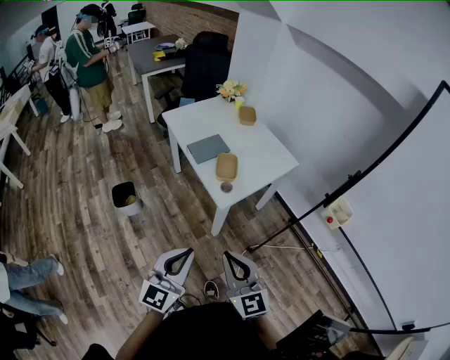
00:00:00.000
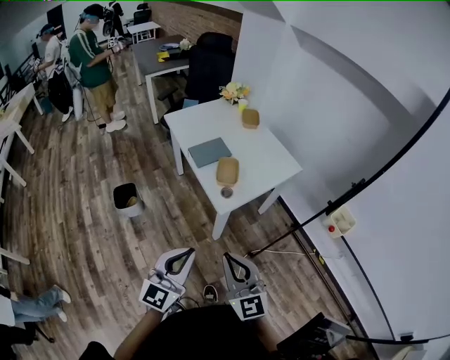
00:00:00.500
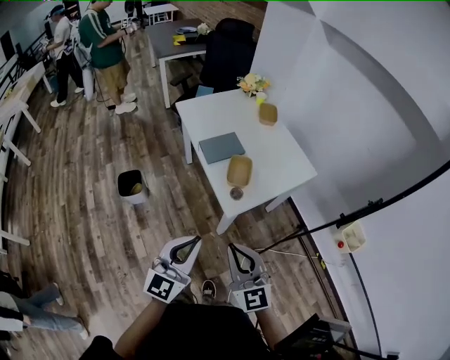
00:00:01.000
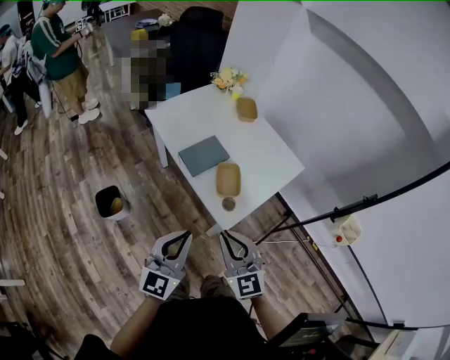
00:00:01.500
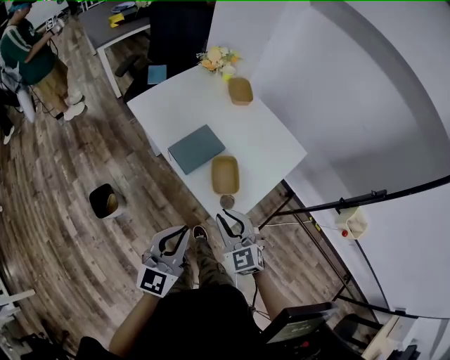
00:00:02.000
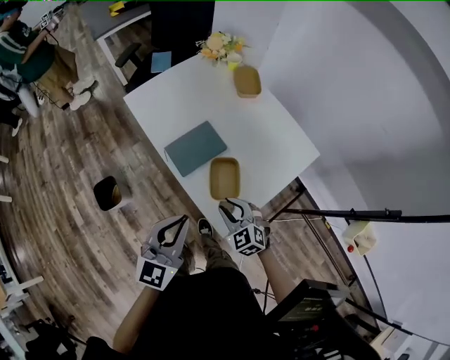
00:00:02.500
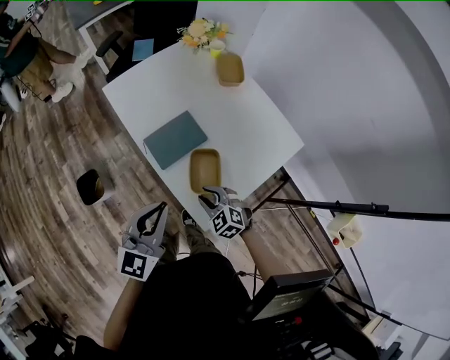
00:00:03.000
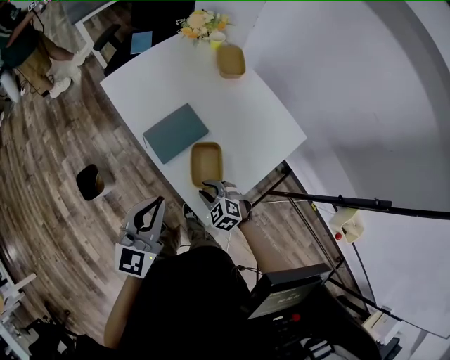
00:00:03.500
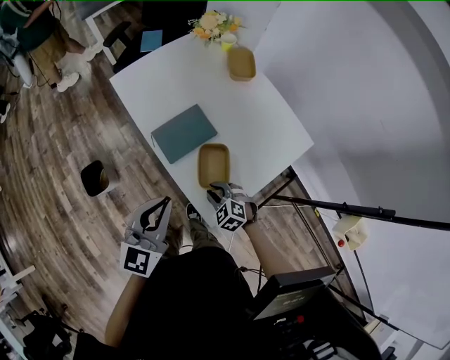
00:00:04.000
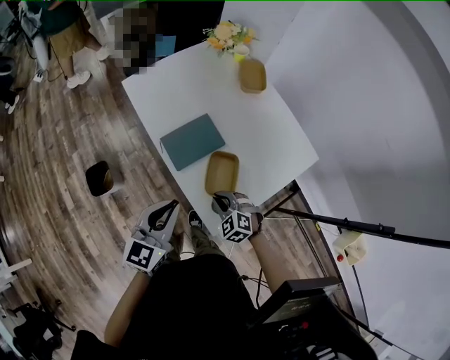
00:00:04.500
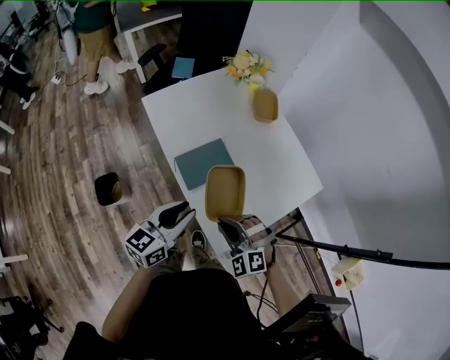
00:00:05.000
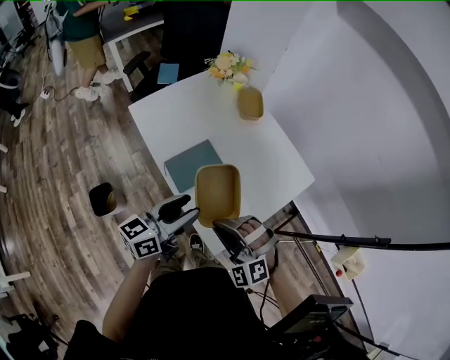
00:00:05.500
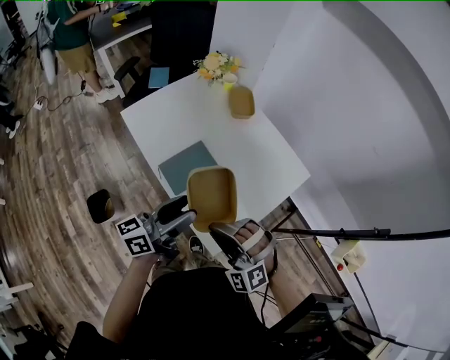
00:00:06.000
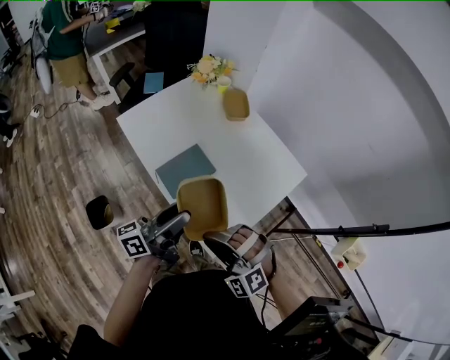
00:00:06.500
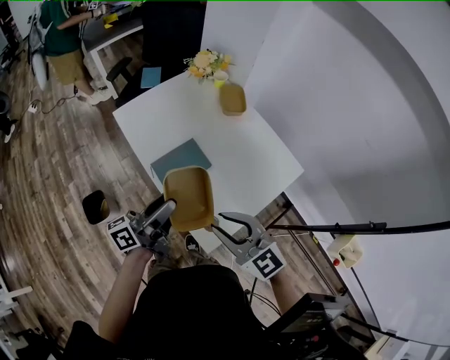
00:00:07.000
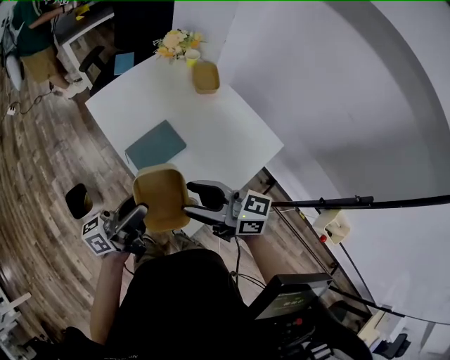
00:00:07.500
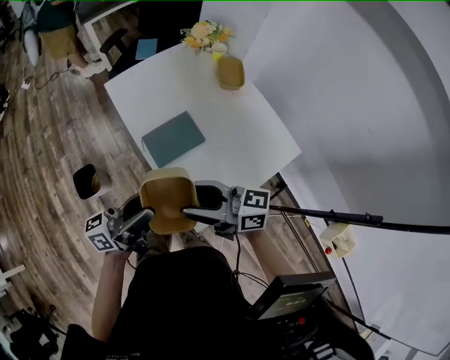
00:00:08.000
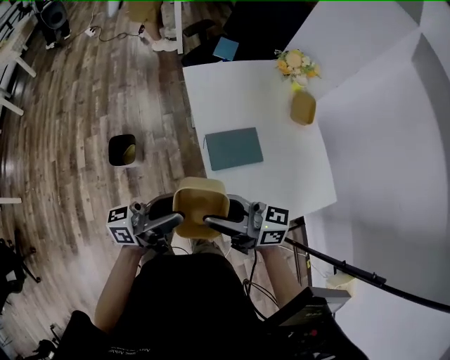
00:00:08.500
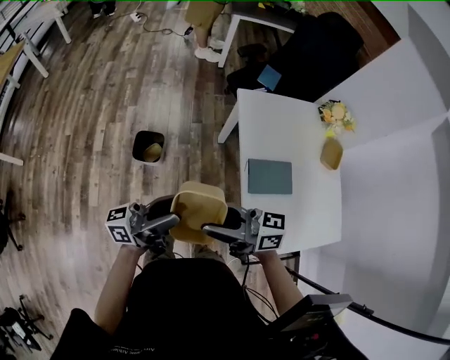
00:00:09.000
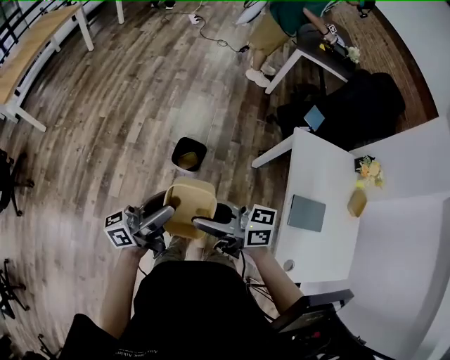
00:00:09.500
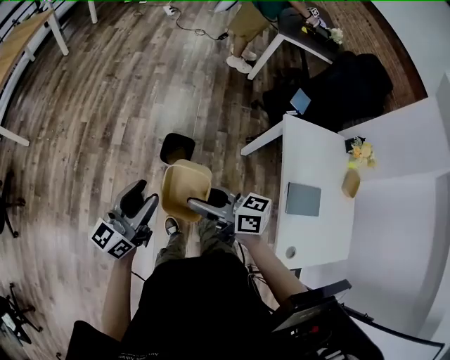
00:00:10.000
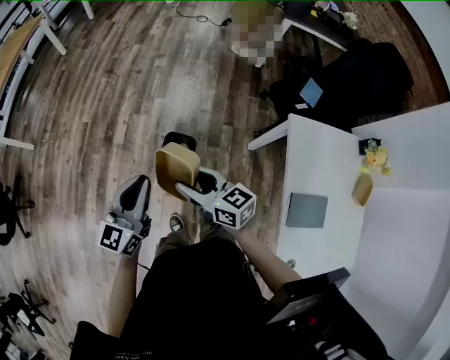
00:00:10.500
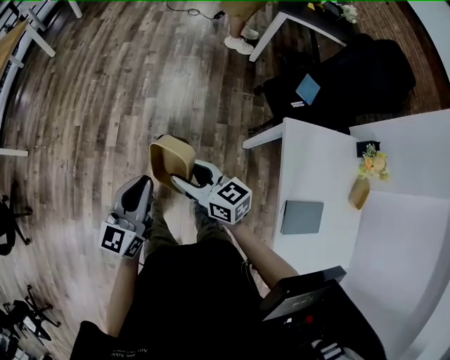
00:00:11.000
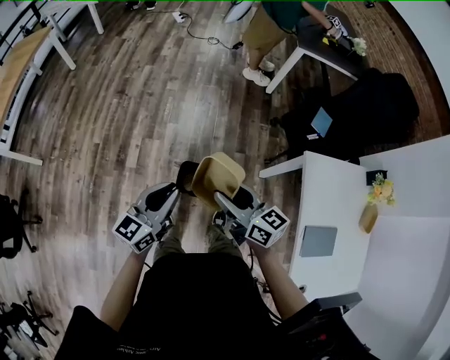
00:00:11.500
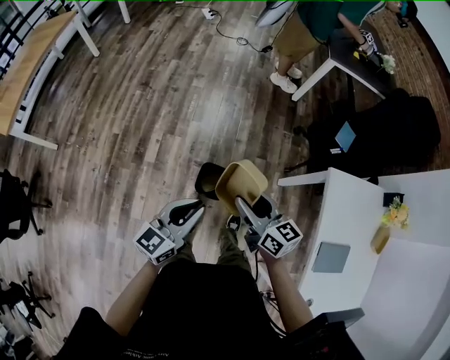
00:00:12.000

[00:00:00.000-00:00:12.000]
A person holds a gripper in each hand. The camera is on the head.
00:00:00.000 to 00:00:02.000: The two grippers go about 30 cm forward. The right gripper swivels about 20 degrees.
00:00:02.000 to 00:00:04.000: The left gripper goes roughly 10 cm forward. Meanwhile the right gripper is displaced downward by roughly 20 cm, and tilts its fingers about 30 degrees downward.
00:00:04.000 to 00:00:06.000: The left gripper is displaced forward by approximately 5 cm, rolls counterclockwise, seen from behind, by about 50 degrees, and opens, while the right gripper heads upward, covering some 25 cm, and tilts its fingers some 30 degrees upward.
00:00:06.000 to 00:00:08.000: The left gripper ends up approximately 5 cm from where it was. Meanwhile the right gripper rolls clockwise, seen from behind, by roughly 90 degrees, and opens up.
00:00:08.000 to 00:00:10.000: Both grippers are carried roughly 60 cm. The left gripper rotates some 70 degrees; the right gripper changes its angle by approximately 30 degrees.
00:00:10.000 to 00:00:12.000: Both grippers travel together forward, approximately 20 cm. The right gripper turns by roughly 30 degrees; the left gripper closes.

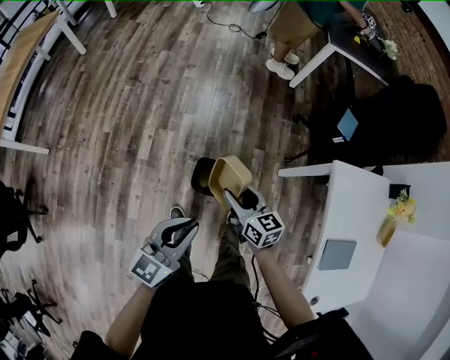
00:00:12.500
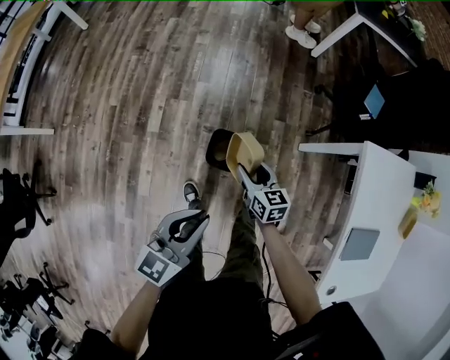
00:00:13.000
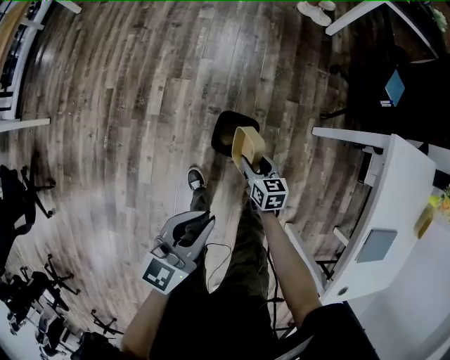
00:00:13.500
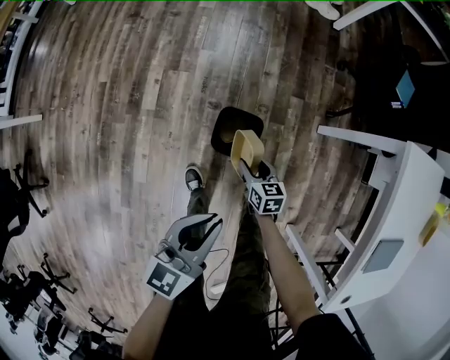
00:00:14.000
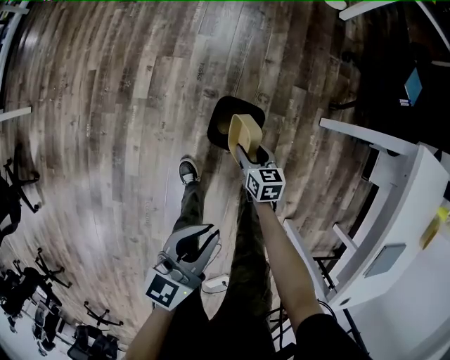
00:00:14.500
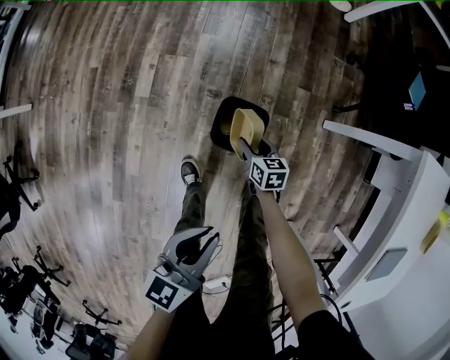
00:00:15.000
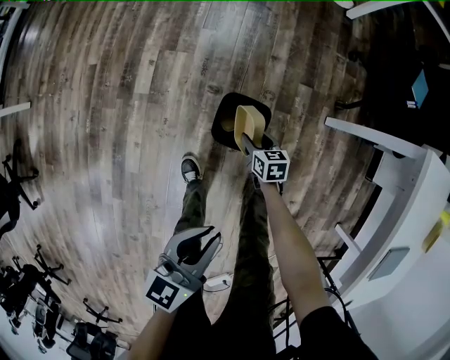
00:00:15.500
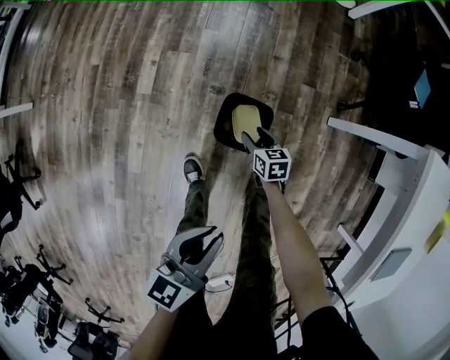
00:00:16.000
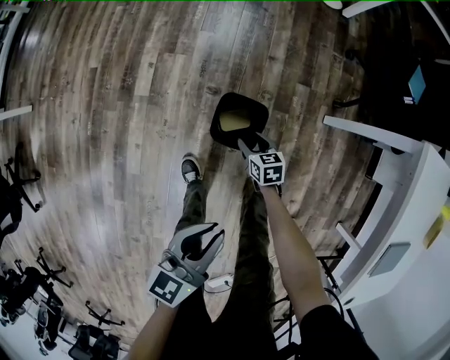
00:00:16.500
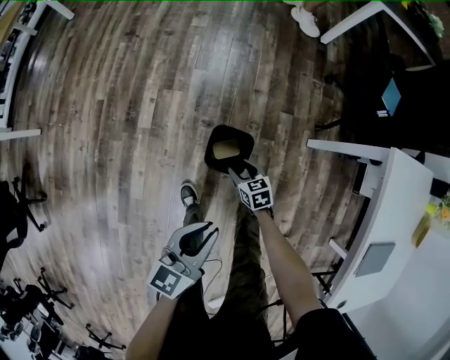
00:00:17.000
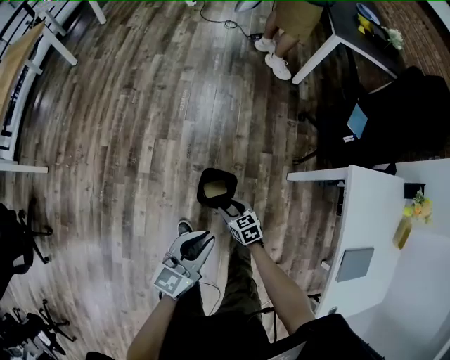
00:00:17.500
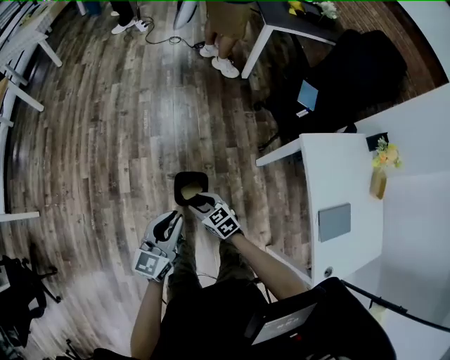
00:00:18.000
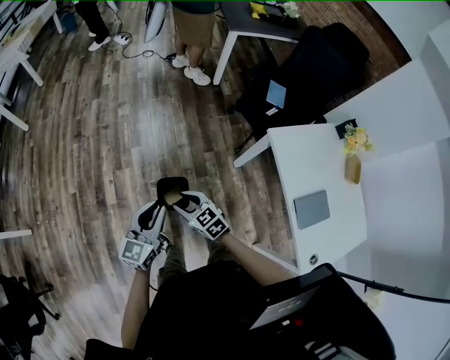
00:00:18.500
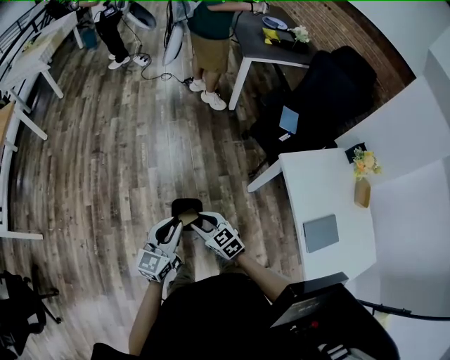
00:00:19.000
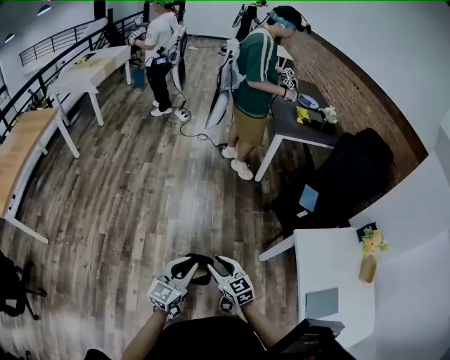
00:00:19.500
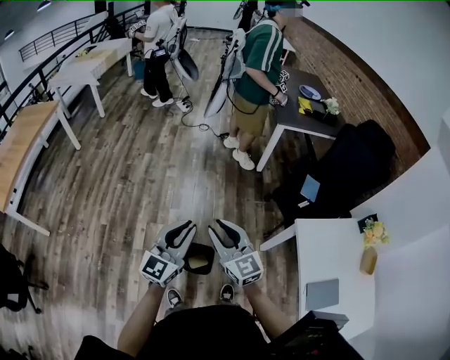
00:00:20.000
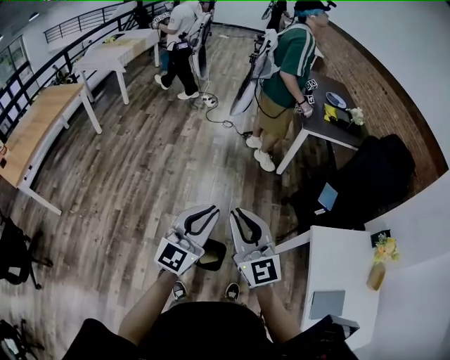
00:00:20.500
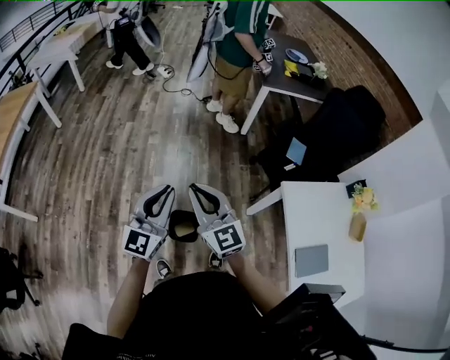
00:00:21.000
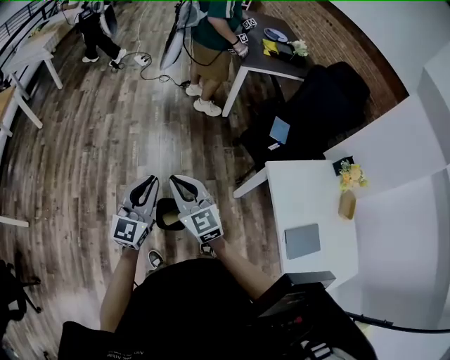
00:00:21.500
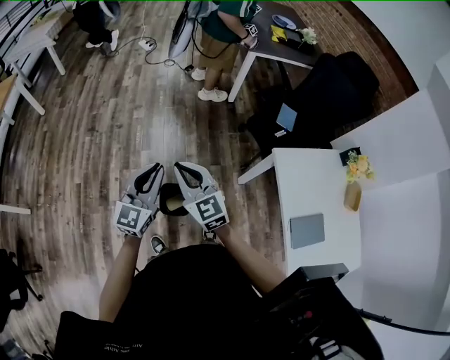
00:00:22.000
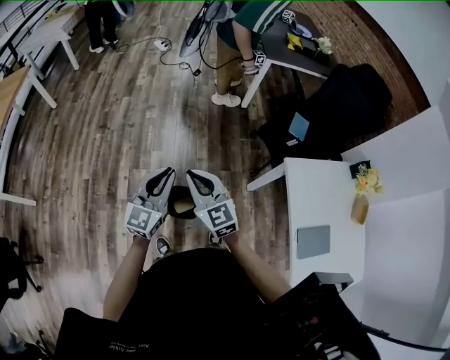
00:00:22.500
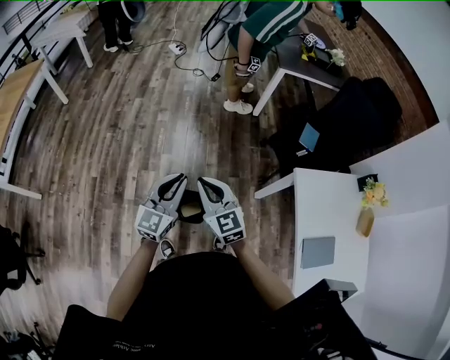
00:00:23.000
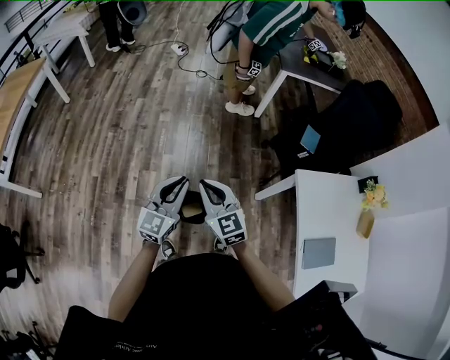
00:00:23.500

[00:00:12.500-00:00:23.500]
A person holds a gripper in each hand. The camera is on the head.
00:00:12.500 to 00:00:14.500: The right gripper goes about 40 cm downward, and changes its angle by approximately 20 degrees, while the left gripper is displaced downward by approximately 25 cm.
00:00:14.500 to 00:00:16.000: The right gripper shifts about 5 cm downward.
00:00:16.000 to 00:00:18.000: The left gripper is displaced upward and forward by roughly 25 cm. The right gripper moves upward, some 35 cm, and turns by roughly 20 degrees.
00:00:18.000 to 00:00:20.000: The right gripper is displaced upward by approximately 35 cm, and angles its fingers upward, by roughly 40 degrees. Meanwhile the left gripper shifts about 20 cm upward and forward, and turns by roughly 30 degrees.
00:00:20.000 to 00:00:21.500: The right gripper reaches roughly 10 cm upward, then returns, and closes.
00:00:21.500 to 00:00:23.500: The left gripper changes place by approximately 5 cm; the right gripper changes place by about 5 cm.

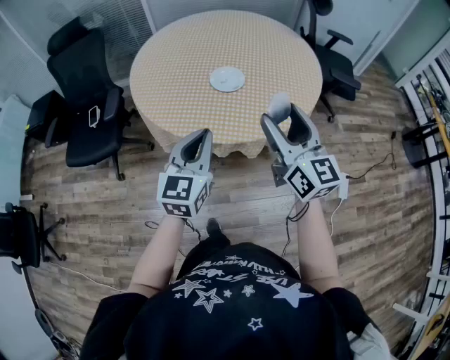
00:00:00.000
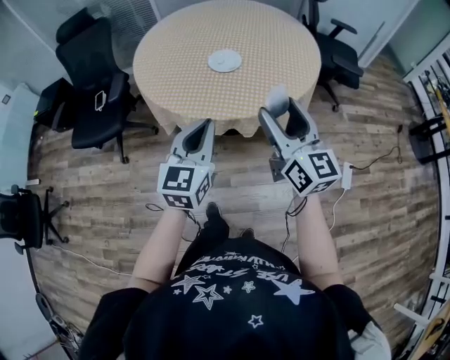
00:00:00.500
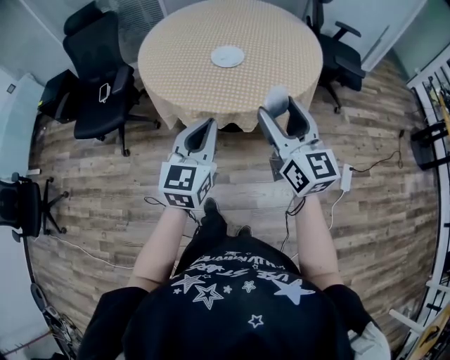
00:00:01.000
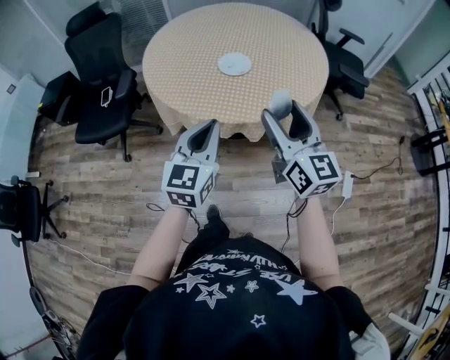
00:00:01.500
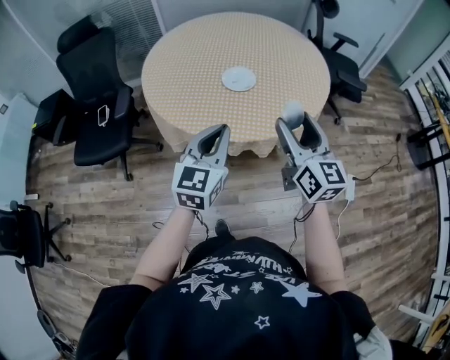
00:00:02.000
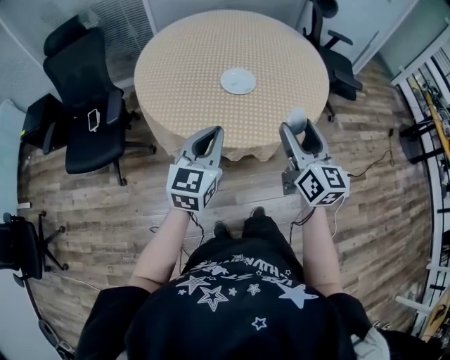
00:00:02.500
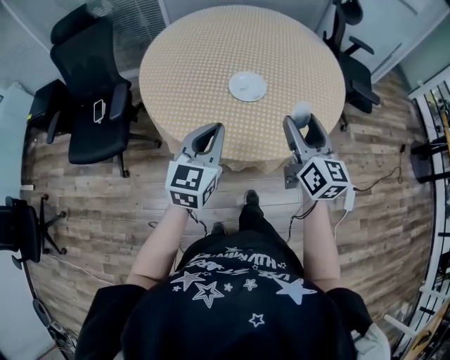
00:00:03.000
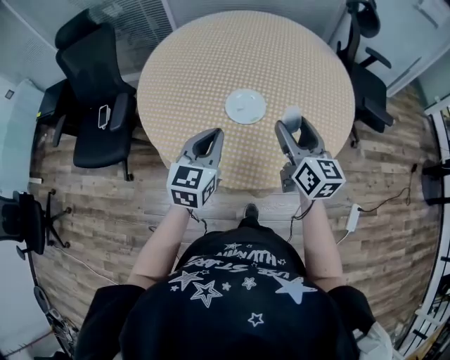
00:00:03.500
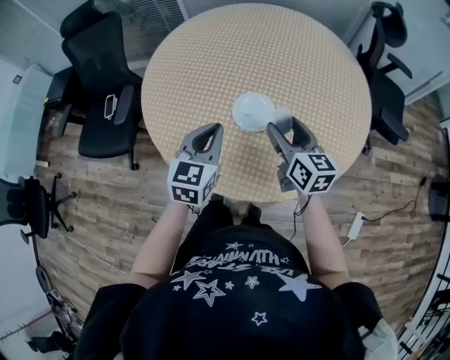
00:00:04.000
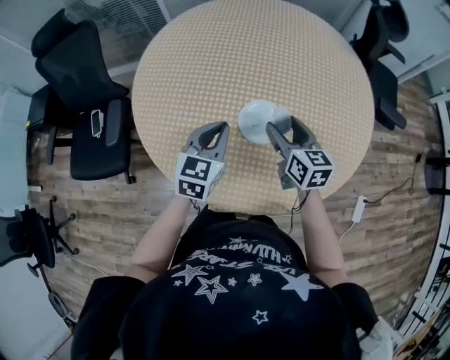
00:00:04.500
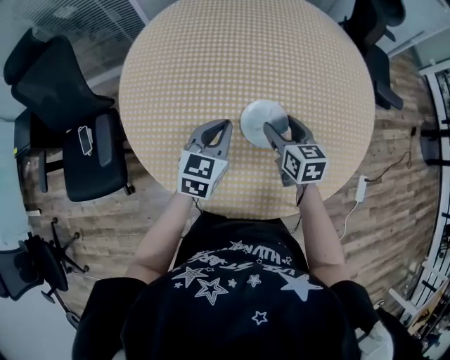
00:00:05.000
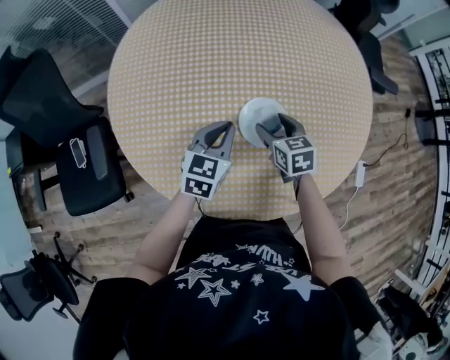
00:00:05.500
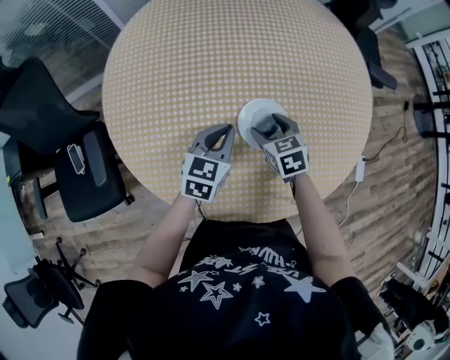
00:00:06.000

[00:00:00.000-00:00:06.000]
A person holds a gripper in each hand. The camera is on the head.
00:00:00.000 to 00:00:02.000: The left gripper moves about 10 cm backward and comes back. Meanwhile the right gripper moves approximately 10 cm backward and comes back.
00:00:02.000 to 00:00:04.000: The left gripper goes some 25 cm forward. The right gripper goes approximately 30 cm forward and downward, and changes its angle by some 20 degrees.
00:00:04.000 to 00:00:06.000: The right gripper shifts some 20 cm downward, to the left and forward, and tilts its fingers approximately 30 degrees downward. The left gripper is displaced forward and downward by some 20 cm, and changes its angle by about 30 degrees.
